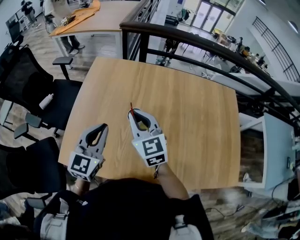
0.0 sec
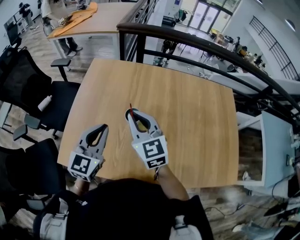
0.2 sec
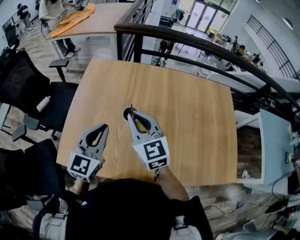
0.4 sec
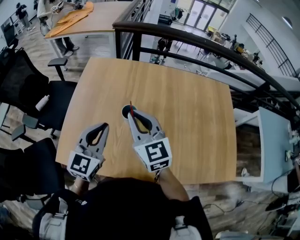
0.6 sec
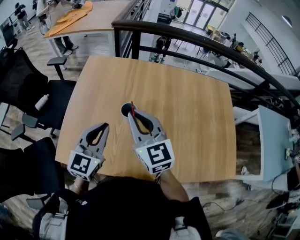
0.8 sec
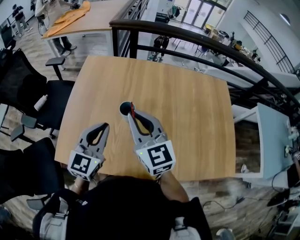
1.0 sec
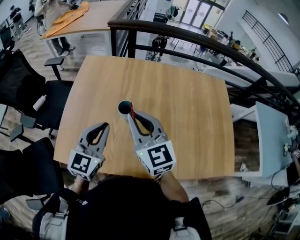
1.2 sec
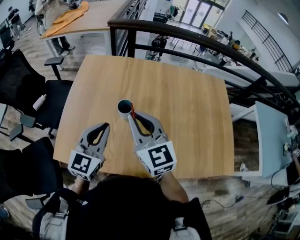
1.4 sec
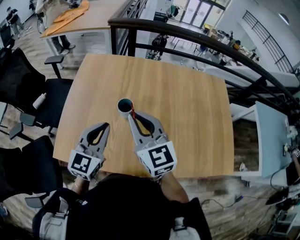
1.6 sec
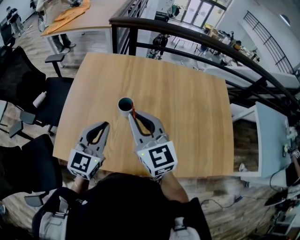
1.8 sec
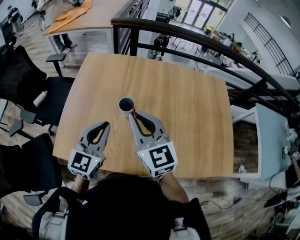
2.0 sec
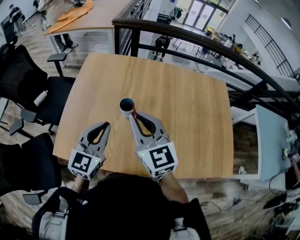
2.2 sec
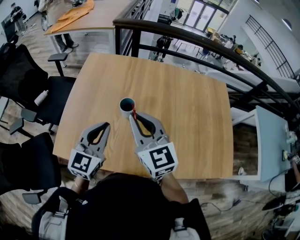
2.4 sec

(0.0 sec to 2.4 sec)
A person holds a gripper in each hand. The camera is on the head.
0.0 sec - 1.2 sec: The left gripper shifts by approximately 5 cm, while the right gripper shifts about 10 cm backward and upward.
1.2 sec - 2.4 sec: The grippers stay close to where they were, moving slightly.

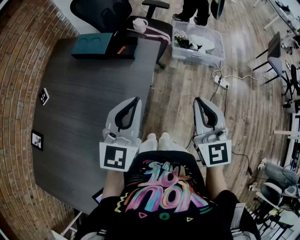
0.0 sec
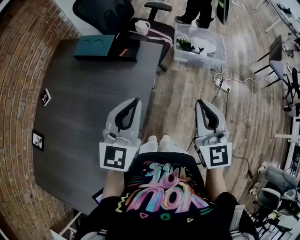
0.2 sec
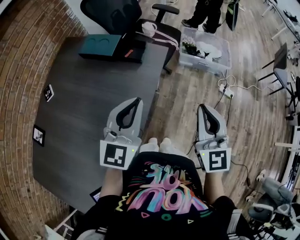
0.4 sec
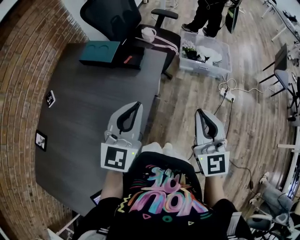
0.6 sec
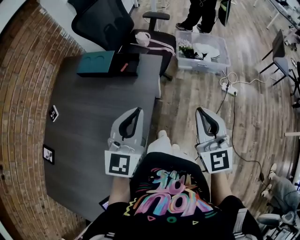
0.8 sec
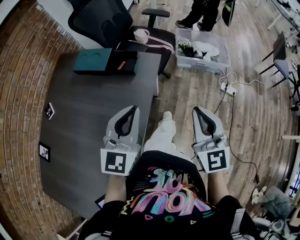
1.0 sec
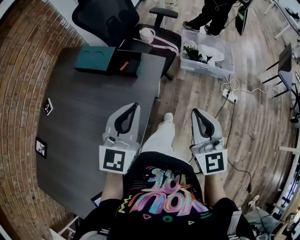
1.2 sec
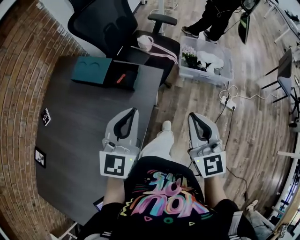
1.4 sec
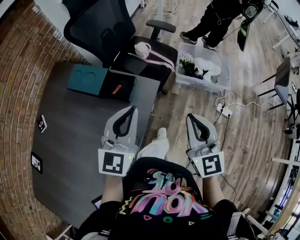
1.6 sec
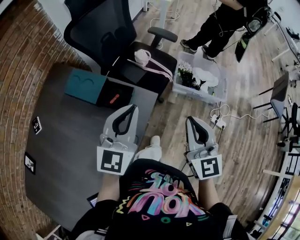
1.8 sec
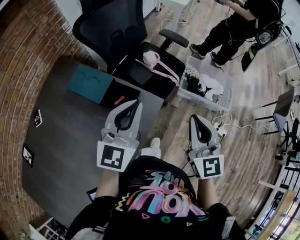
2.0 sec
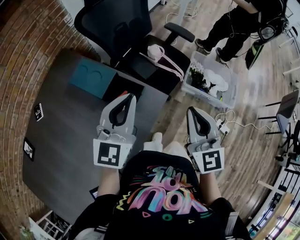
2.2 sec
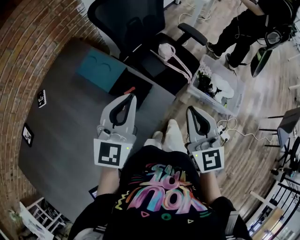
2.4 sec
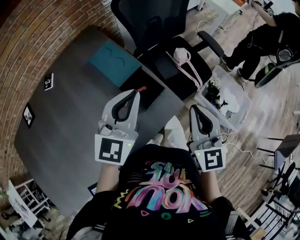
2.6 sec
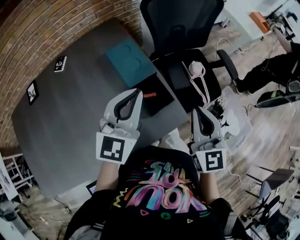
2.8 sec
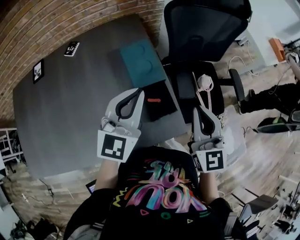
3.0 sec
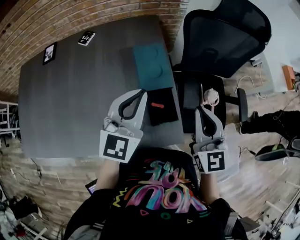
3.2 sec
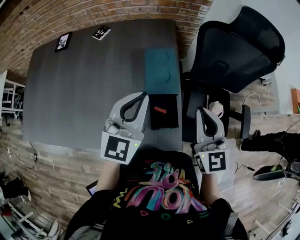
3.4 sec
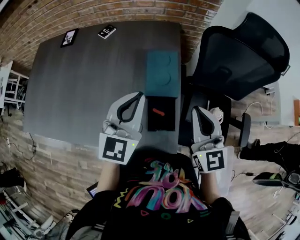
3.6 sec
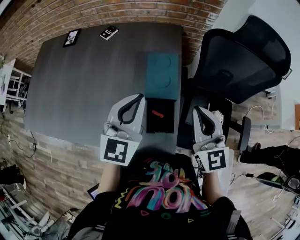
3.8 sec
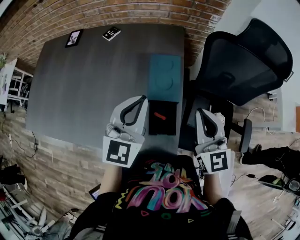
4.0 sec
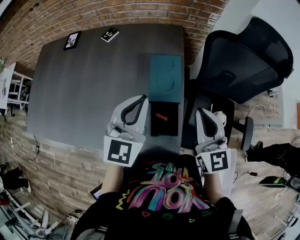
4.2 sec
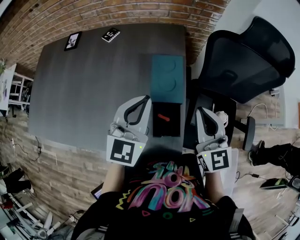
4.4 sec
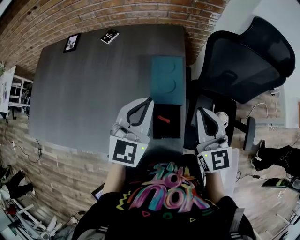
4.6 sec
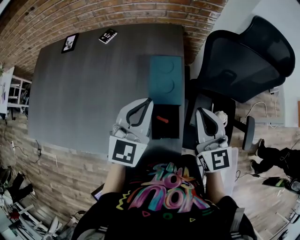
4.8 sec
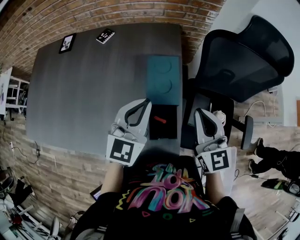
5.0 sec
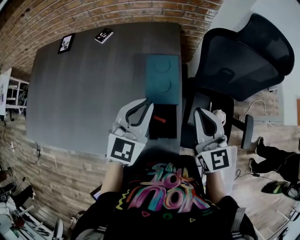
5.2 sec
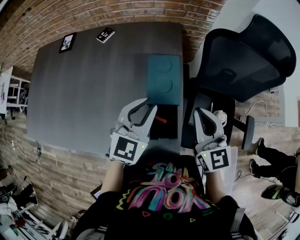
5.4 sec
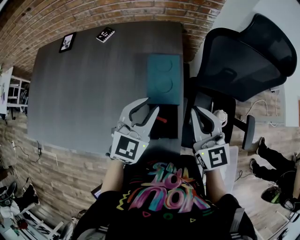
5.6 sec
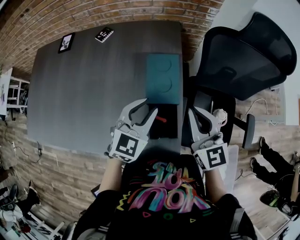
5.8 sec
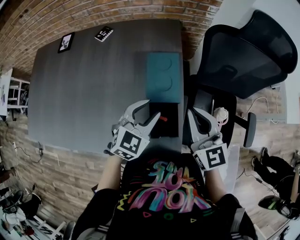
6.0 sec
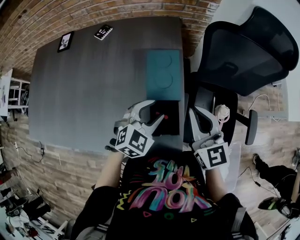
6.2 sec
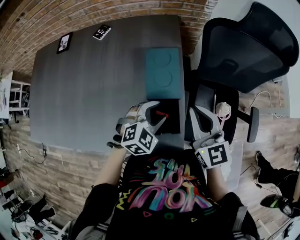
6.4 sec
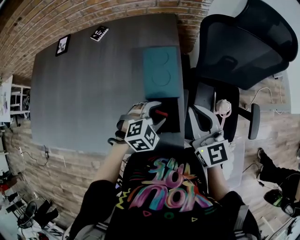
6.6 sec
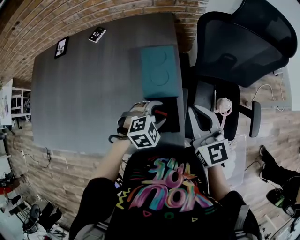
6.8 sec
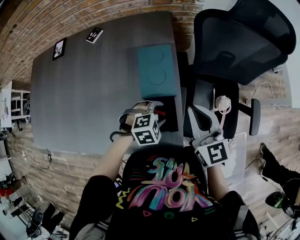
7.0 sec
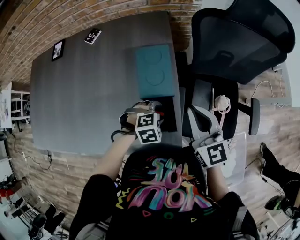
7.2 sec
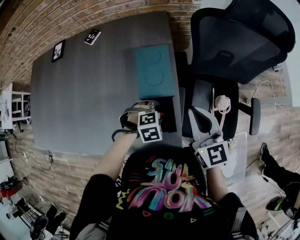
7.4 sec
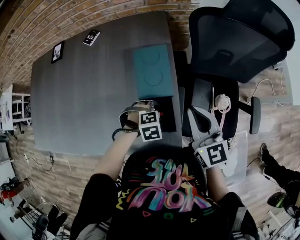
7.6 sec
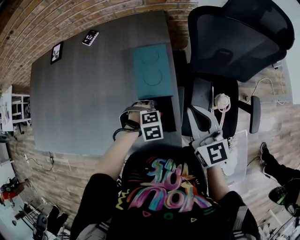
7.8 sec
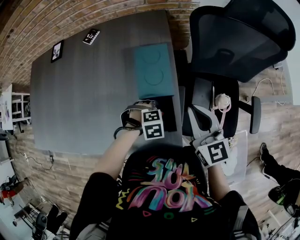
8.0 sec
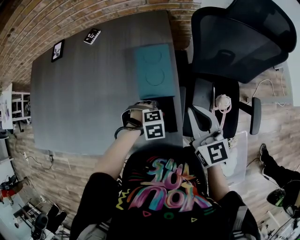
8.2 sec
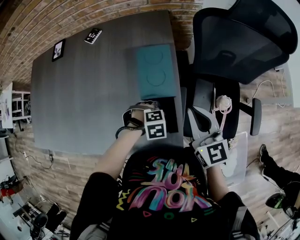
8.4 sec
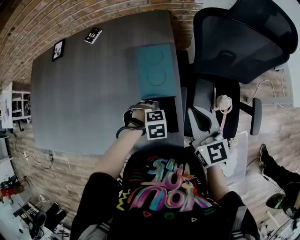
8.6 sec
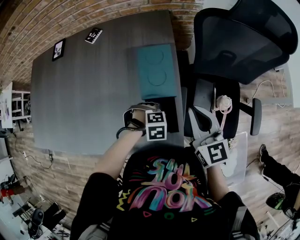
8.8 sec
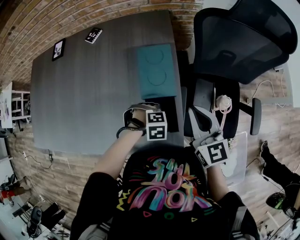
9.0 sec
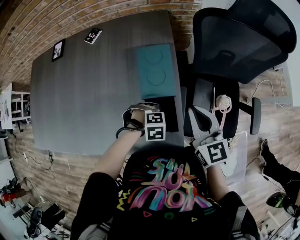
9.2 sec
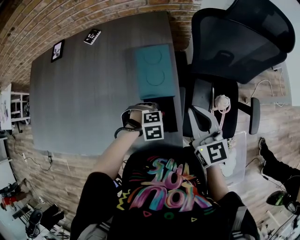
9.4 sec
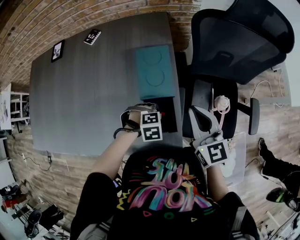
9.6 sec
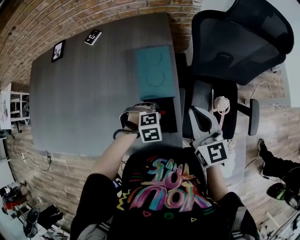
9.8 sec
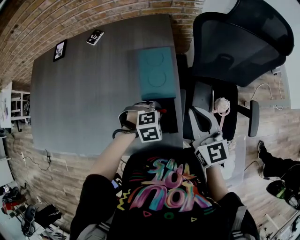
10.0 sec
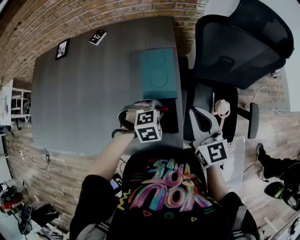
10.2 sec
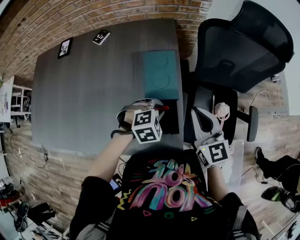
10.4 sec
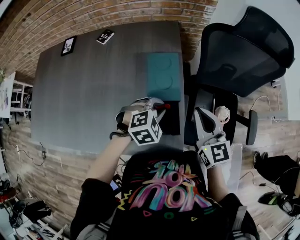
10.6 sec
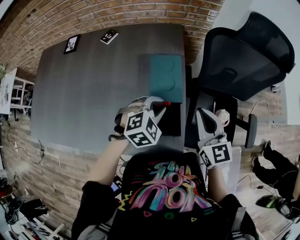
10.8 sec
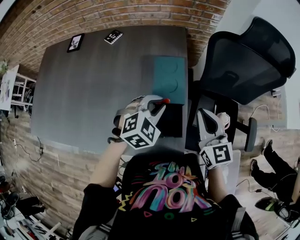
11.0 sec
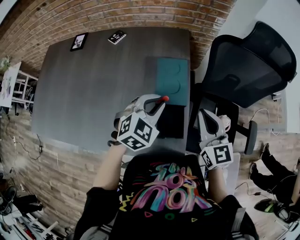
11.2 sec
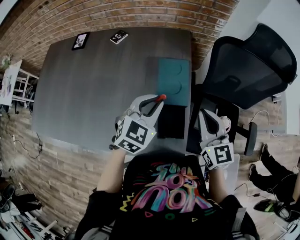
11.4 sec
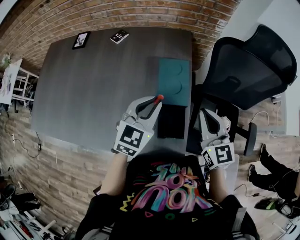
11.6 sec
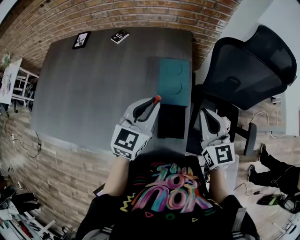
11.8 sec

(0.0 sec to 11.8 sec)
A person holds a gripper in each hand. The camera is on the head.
0.0 sec - 1.4 sec: The two grippers go approximately 15 cm forward.
1.4 sec - 3.0 sec: The right gripper changes place by roughly 35 cm, and turns by roughly 50 degrees. The left gripper shifts by some 25 cm, and turns by some 50 degrees.
3.0 sec - 4.4 sec: The right gripper shifts by approximately 10 cm, and turns by about 30 degrees. The left gripper turns by some 20 degrees.
4.4 sec - 6.0 sec: The left gripper goes approximately 10 cm downward, turns by about 20 degrees, and opens up.
6.0 sec - 7.4 sec: The right gripper changes place by about 5 cm. The left gripper moves downward, roughly 15 cm, and tips its fingers downward by some 40 degrees.
7.4 sec - 8.8 sec: The left gripper closes up.
8.8 sec - 10.4 sec: The left gripper shifts about 10 cm upward, and turns by about 20 degrees.
10.4 sec - 11.8 sec: The left gripper heads upward and to the left, covering some 20 cm, and tips its fingers upward by some 50 degrees.

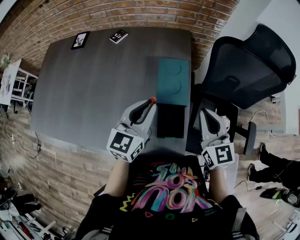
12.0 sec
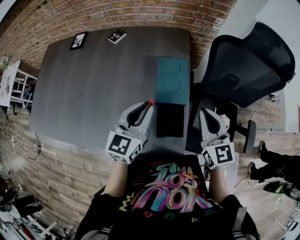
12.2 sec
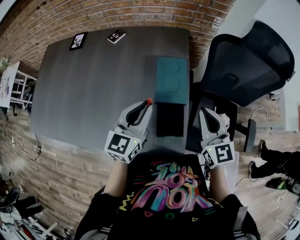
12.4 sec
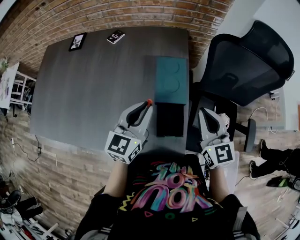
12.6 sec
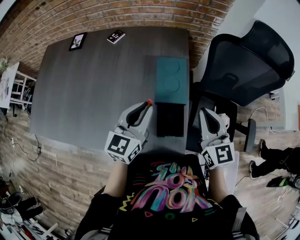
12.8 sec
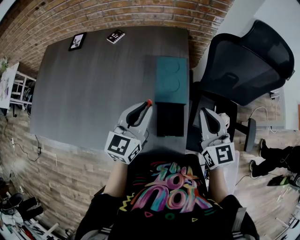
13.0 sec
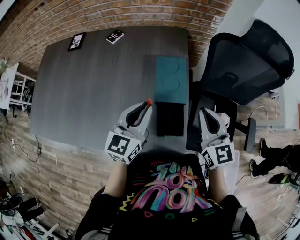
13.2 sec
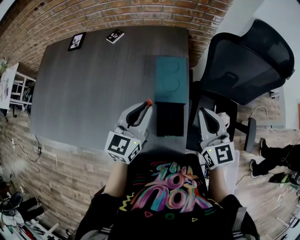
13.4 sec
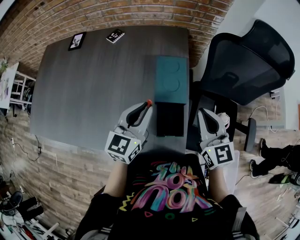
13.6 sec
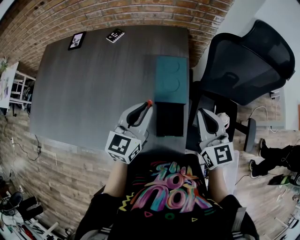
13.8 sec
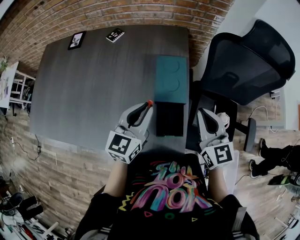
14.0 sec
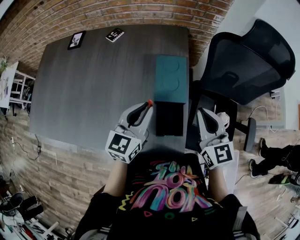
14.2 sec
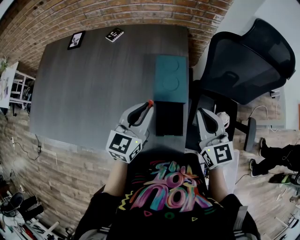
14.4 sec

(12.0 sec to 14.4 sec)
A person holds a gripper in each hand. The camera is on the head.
12.0 sec - 14.4 sec: The grippers stay close to where they were, moving slightly.

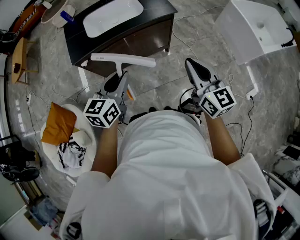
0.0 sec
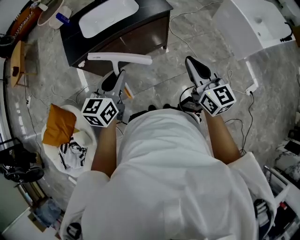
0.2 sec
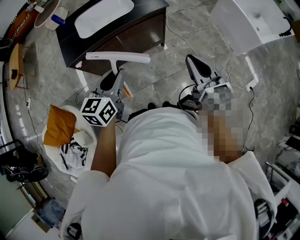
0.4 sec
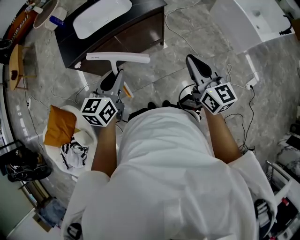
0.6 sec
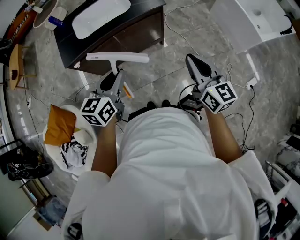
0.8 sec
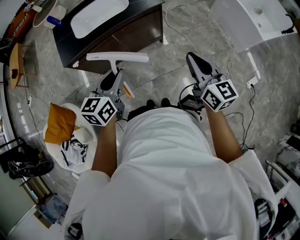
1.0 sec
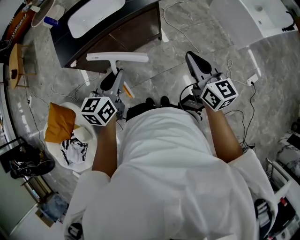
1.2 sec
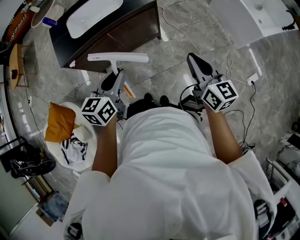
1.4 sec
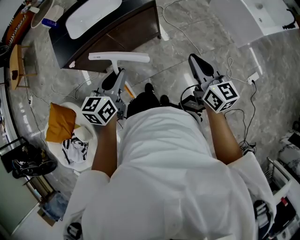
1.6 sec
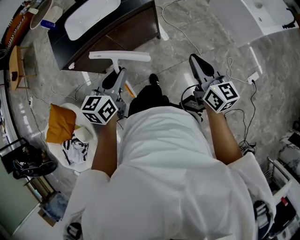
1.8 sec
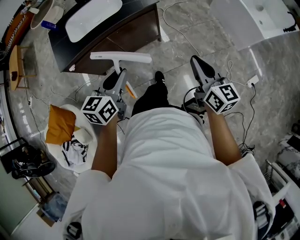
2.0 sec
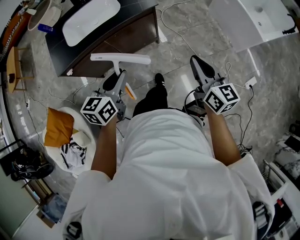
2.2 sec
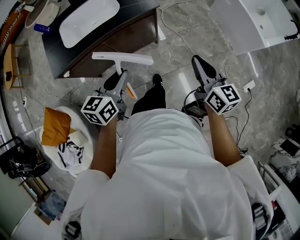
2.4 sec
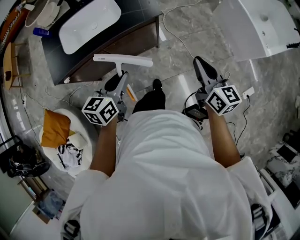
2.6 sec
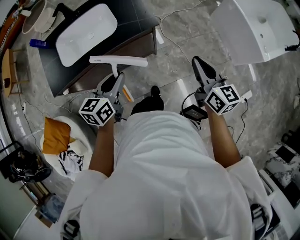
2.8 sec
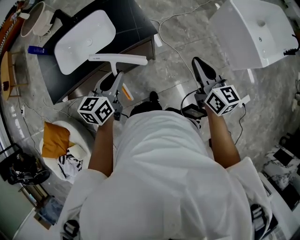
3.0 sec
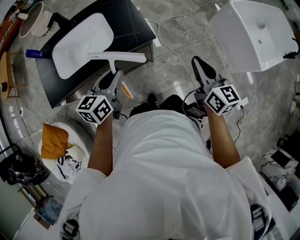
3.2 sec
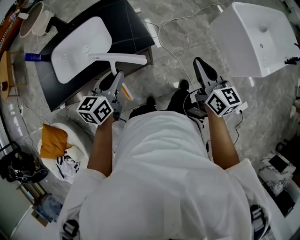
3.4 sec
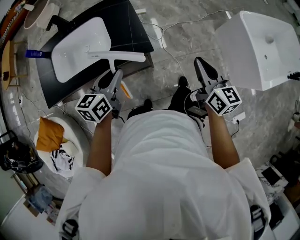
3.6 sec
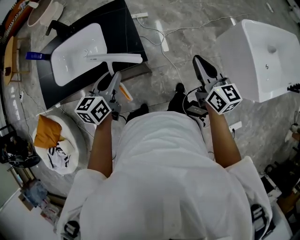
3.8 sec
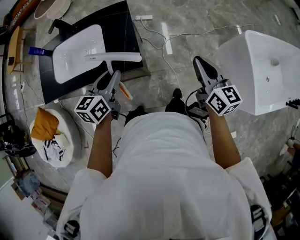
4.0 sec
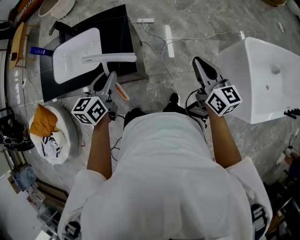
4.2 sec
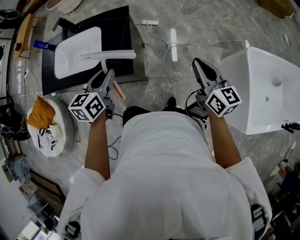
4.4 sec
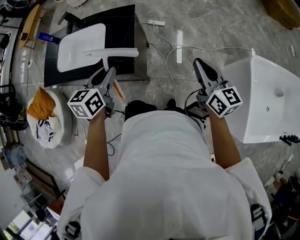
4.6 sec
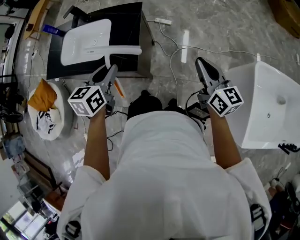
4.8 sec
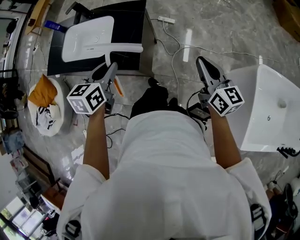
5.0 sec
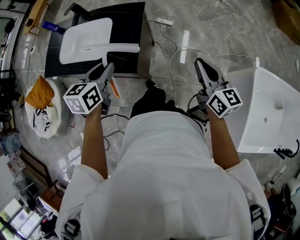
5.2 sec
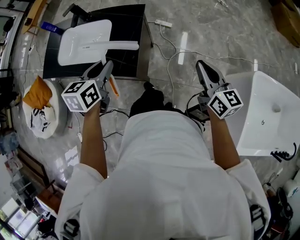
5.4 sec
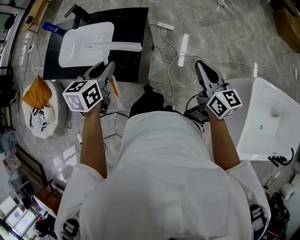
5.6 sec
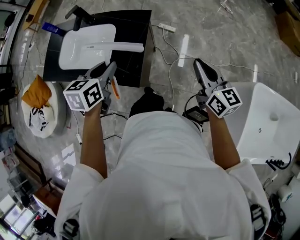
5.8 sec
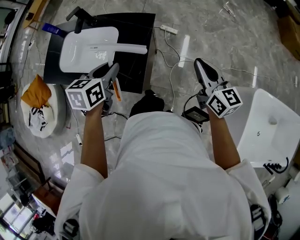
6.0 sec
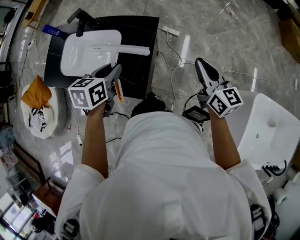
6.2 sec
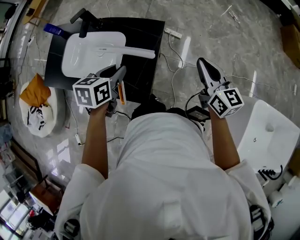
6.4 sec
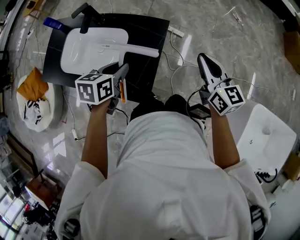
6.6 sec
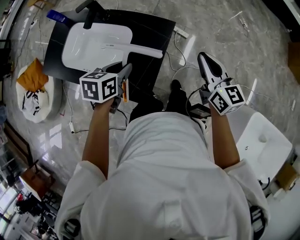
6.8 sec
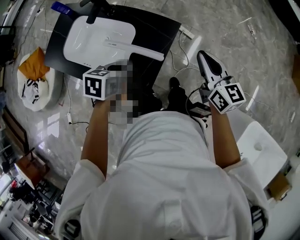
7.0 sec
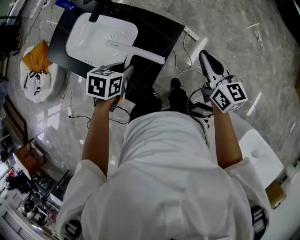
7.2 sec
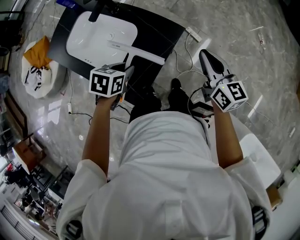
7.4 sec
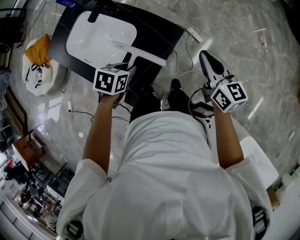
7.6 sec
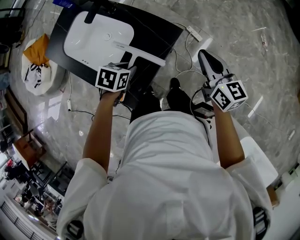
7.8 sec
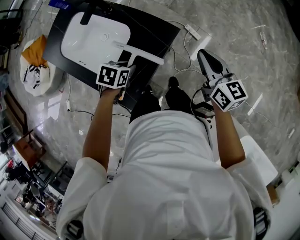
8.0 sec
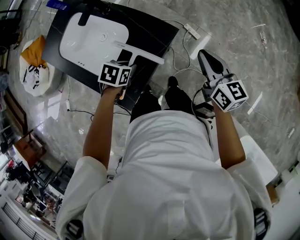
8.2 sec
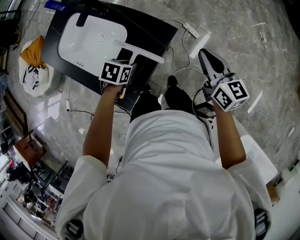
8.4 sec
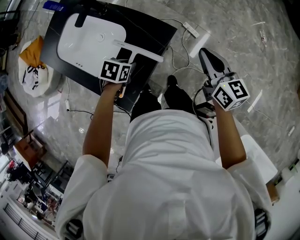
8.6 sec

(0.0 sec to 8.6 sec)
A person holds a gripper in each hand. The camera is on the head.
0.0 sec - 1.4 sec: The left gripper goes some 10 cm to the right; the right gripper shifts about 15 cm to the right and downward.
1.4 sec - 2.8 sec: The two grippers go roughly 25 cm forward.
2.8 sec - 4.4 sec: The left gripper changes place by roughly 30 cm, and changes its angle by about 30 degrees. The right gripper ends up approximately 40 cm from where it was, and swivels some 20 degrees.
4.4 sec - 5.8 sec: The grippers both shift forward by roughly 10 cm.
5.8 sec - 7.2 sec: The right gripper heads forward, covering some 25 cm. The left gripper heads forward and downward, covering roughly 15 cm, and turns by approximately 20 degrees.
7.2 sec - 8.6 sec: The right gripper is displaced forward by some 5 cm. Meanwhile the left gripper moves downward and forward, approximately 15 cm.
